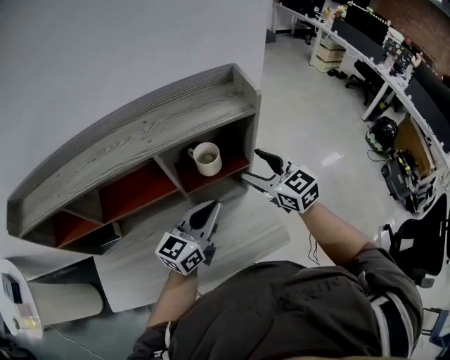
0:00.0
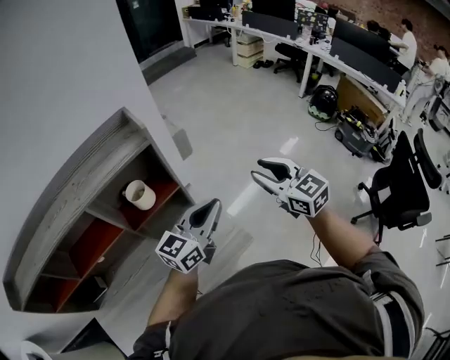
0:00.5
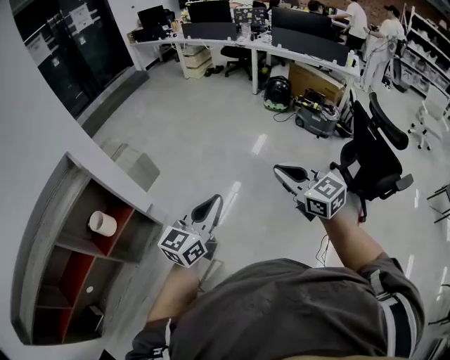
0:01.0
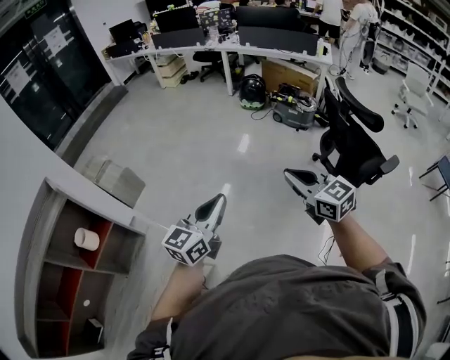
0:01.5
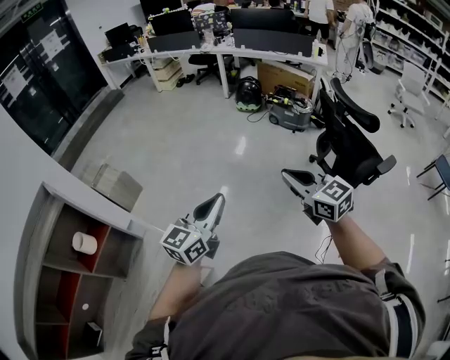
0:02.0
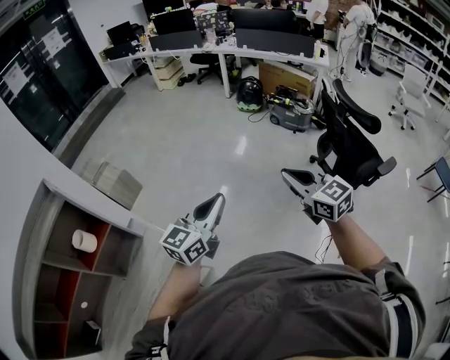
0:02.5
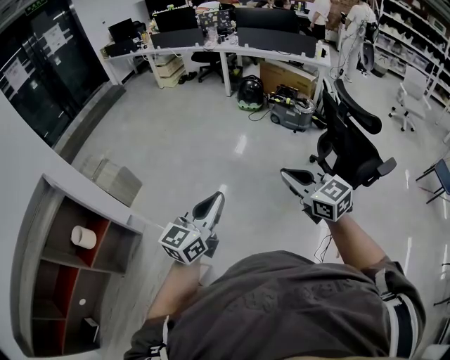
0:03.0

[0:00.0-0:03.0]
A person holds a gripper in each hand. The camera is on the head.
0:00.0 to 0:01.5: The pair of grippers is taken about 60 cm. The left gripper swivels some 40 degrees, while the right gripper swivels roughly 50 degrees, and closes up.
0:01.5 to 0:03.0: Both grippers stay about where they are.

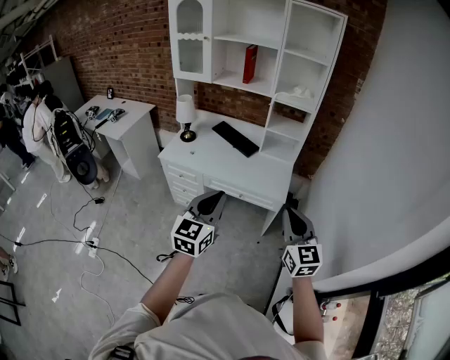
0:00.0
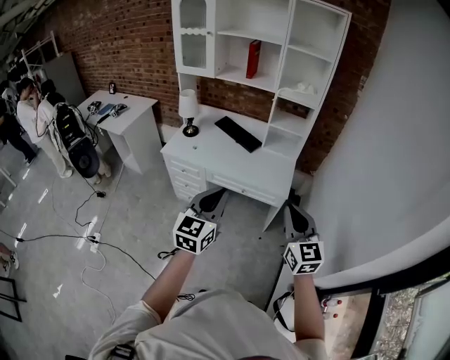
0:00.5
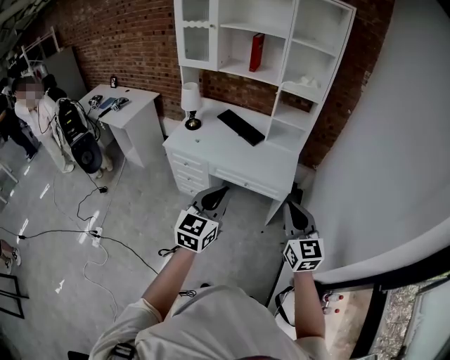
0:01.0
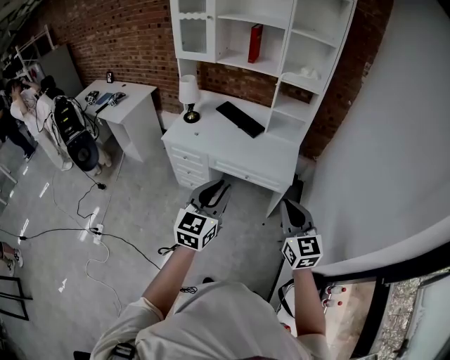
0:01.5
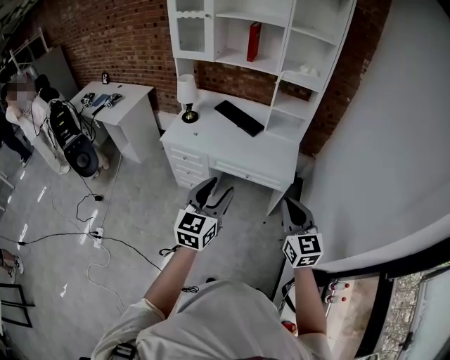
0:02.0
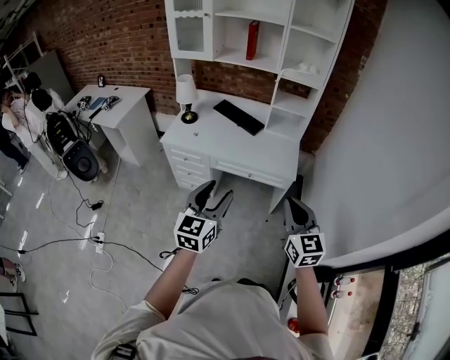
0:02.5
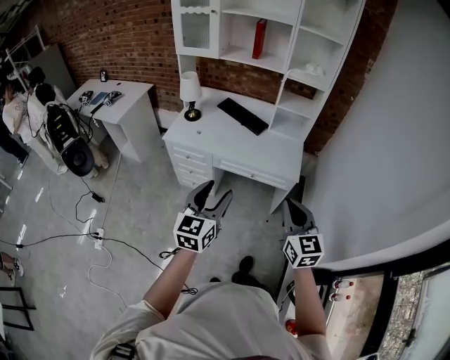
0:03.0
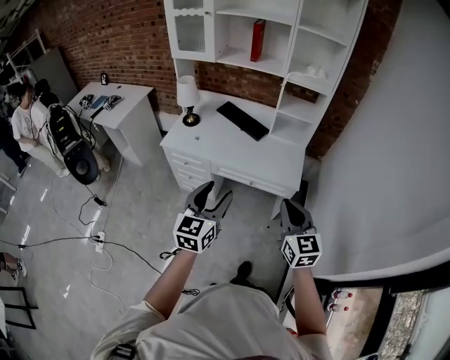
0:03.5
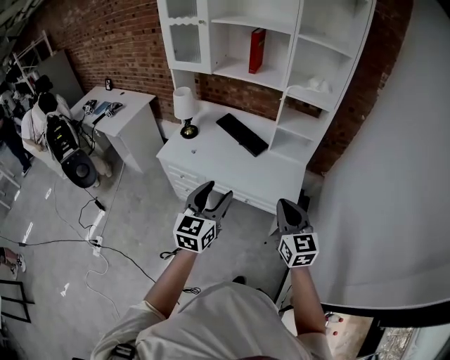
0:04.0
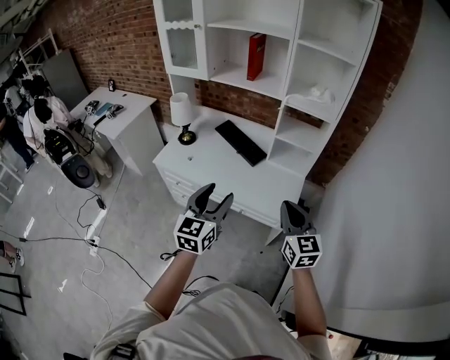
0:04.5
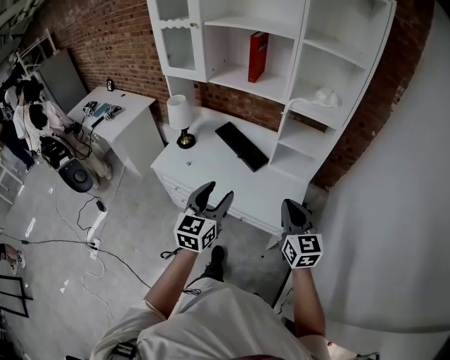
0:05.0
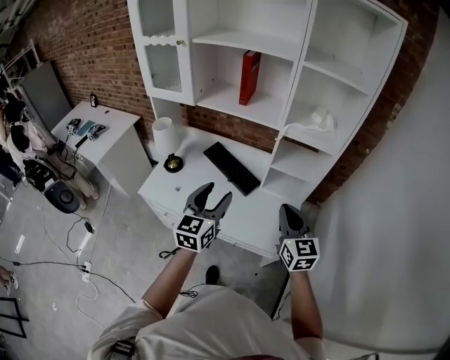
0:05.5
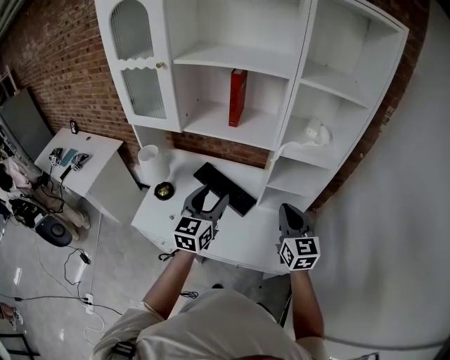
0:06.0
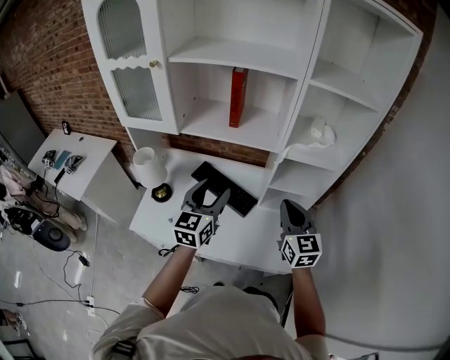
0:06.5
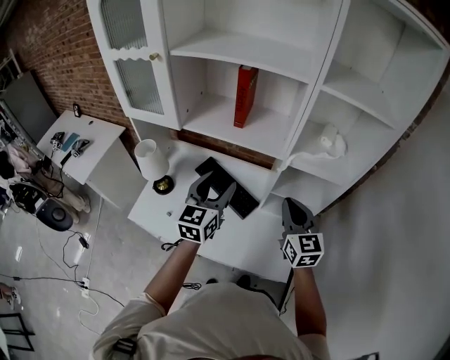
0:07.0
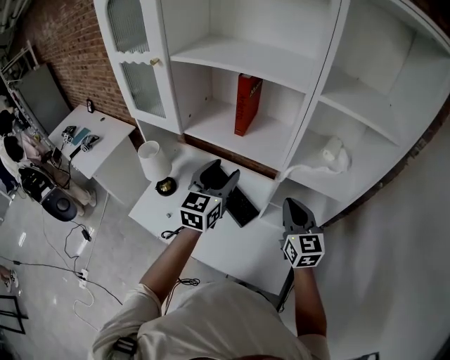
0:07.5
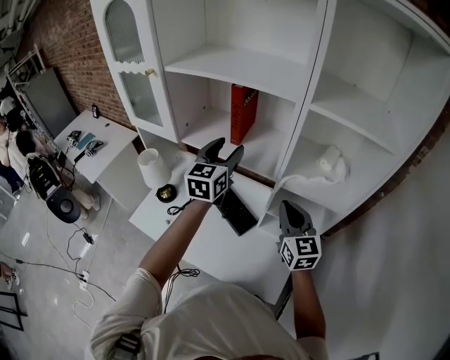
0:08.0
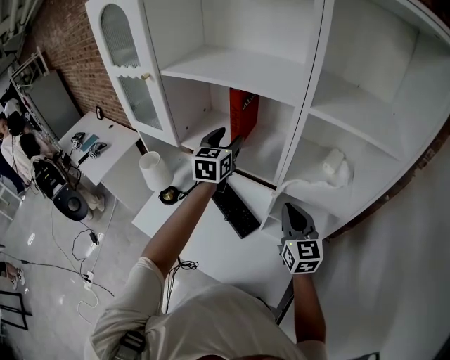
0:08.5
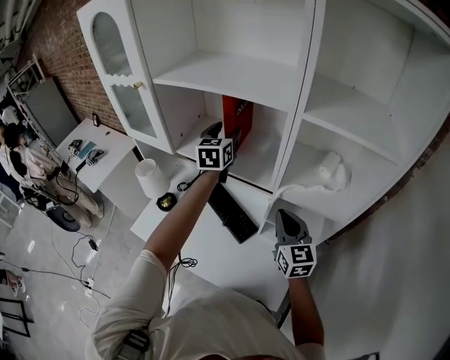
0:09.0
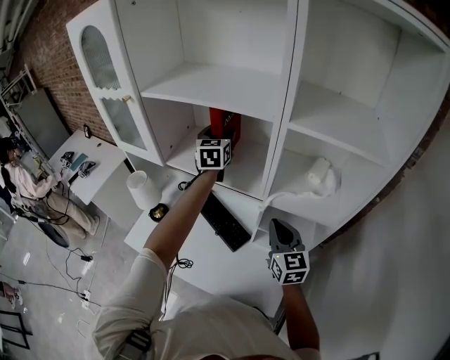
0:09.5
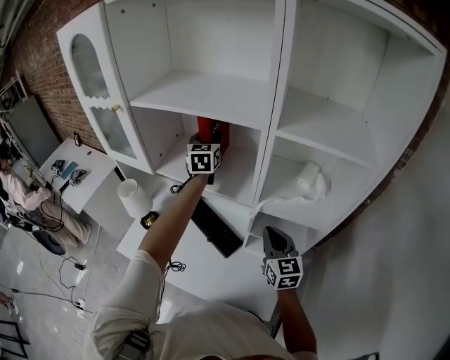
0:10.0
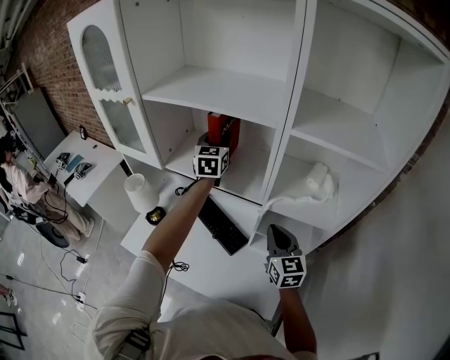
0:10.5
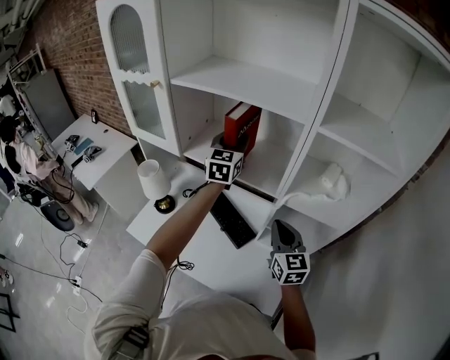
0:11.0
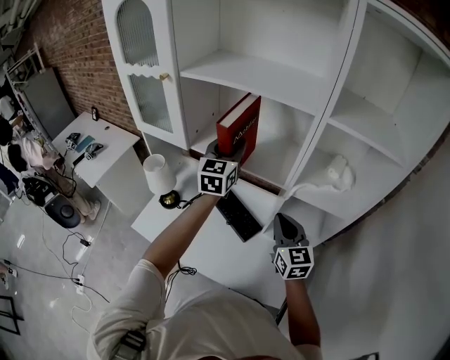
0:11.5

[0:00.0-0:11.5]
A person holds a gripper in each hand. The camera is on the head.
0:00.0 to 0:02.0: The right gripper shifts about 5 cm to the left. The left gripper ends up roughly 5 cm from where it was, and opens its fingers.
0:02.0 to 0:04.0: The two grippers go approximately 20 cm forward.
0:04.0 to 0:06.0: The two grippers go approximately 35 cm forward.
0:06.0 to 0:07.5: Both grippers move forward, about 15 cm.
0:07.5 to 0:09.5: The left gripper shifts roughly 25 cm forward. Meanwhile the right gripper shifts by some 5 cm.
0:09.5 to 0:11.5: The right gripper moves to the left, about 5 cm, while the left gripper moves backward and to the left, approximately 15 cm, and closes up.

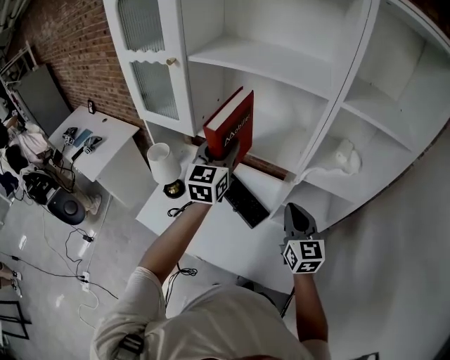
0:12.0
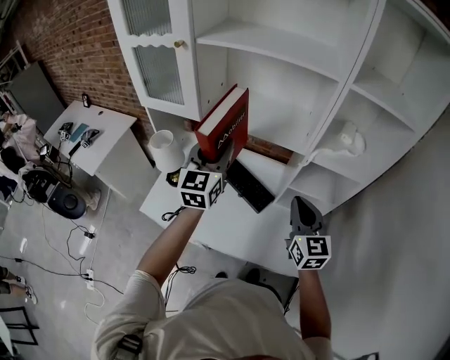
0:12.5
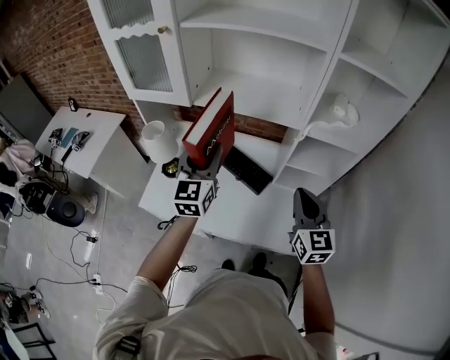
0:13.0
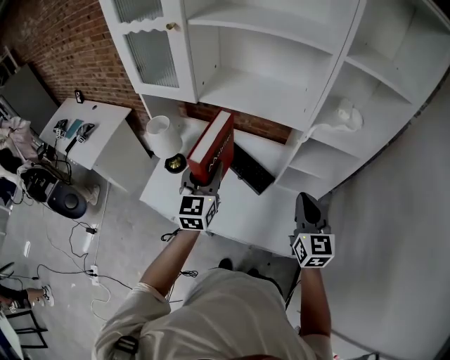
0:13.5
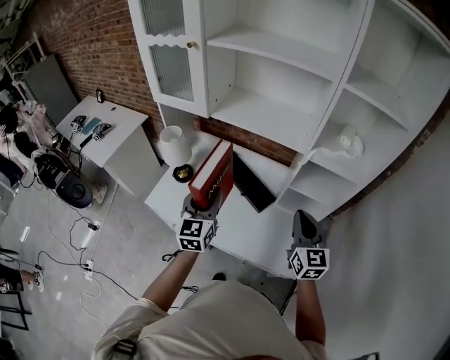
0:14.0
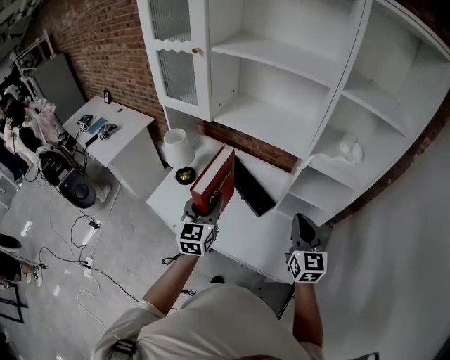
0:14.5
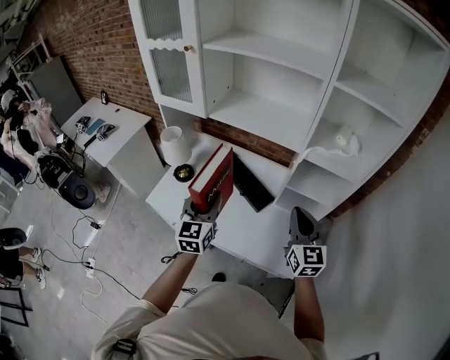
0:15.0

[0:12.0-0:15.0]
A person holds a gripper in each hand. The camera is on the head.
0:12.0 to 0:13.5: The left gripper shifts some 20 cm backward and downward. Meanwhile the right gripper is displaced backward by approximately 10 cm.
0:13.5 to 0:15.0: The left gripper moves backward, some 5 cm.

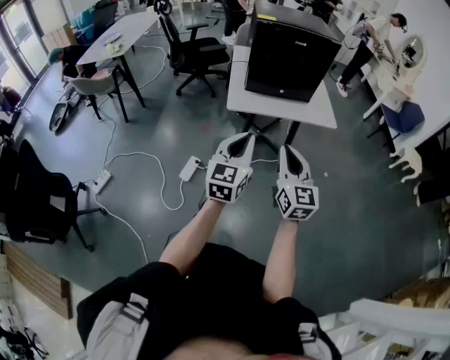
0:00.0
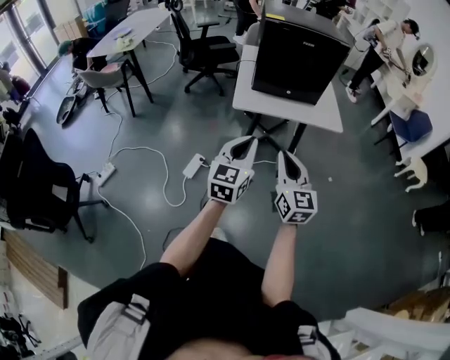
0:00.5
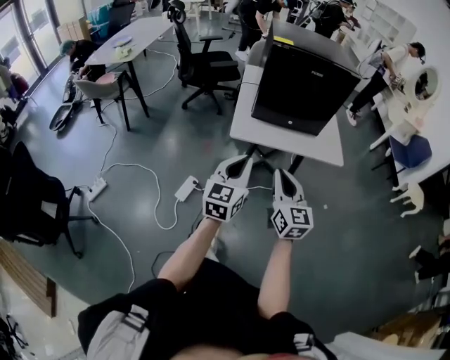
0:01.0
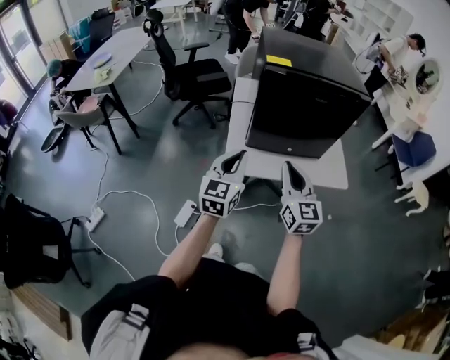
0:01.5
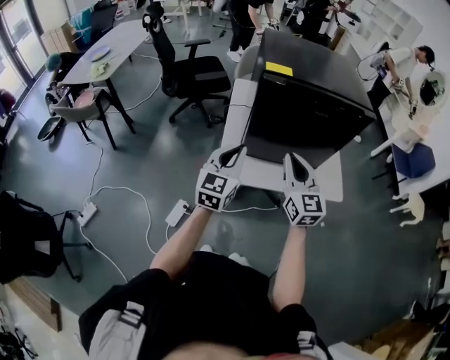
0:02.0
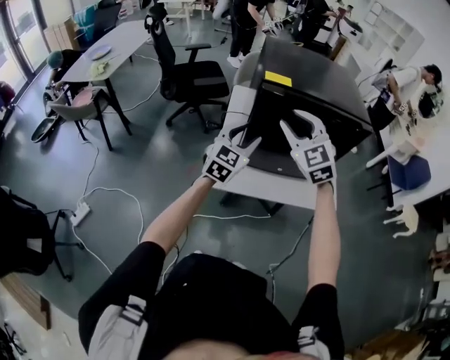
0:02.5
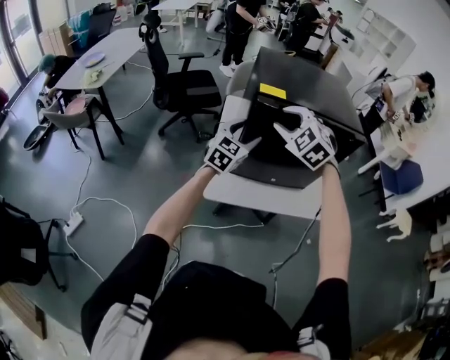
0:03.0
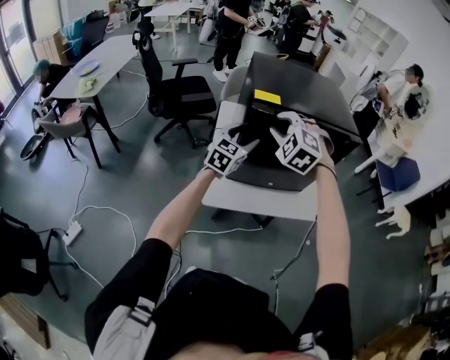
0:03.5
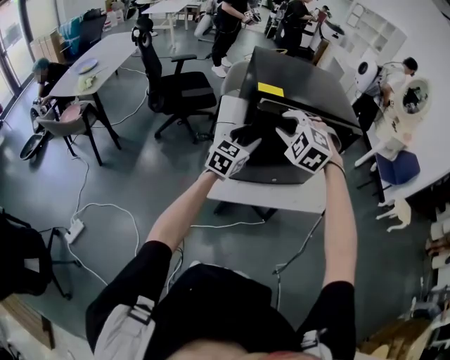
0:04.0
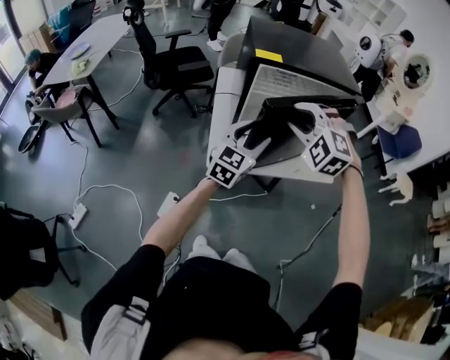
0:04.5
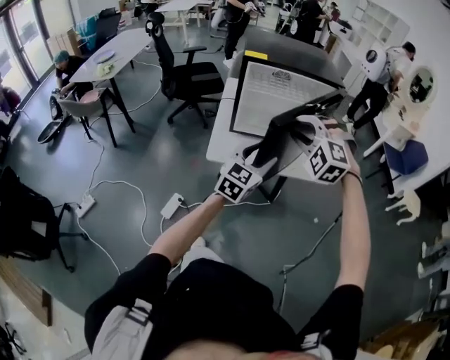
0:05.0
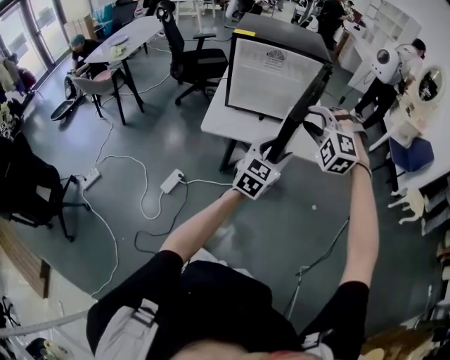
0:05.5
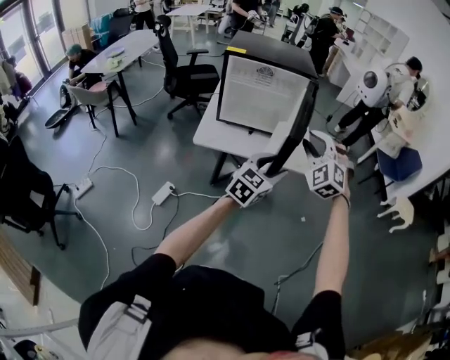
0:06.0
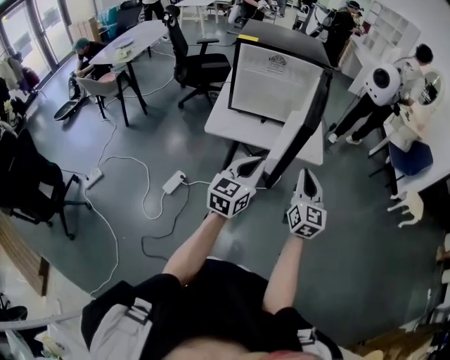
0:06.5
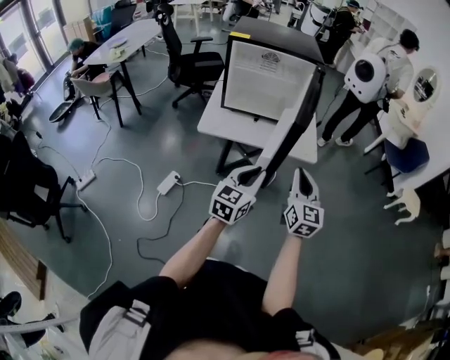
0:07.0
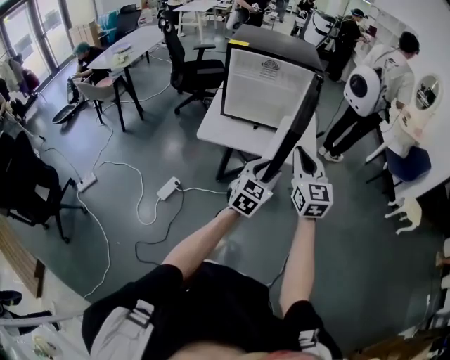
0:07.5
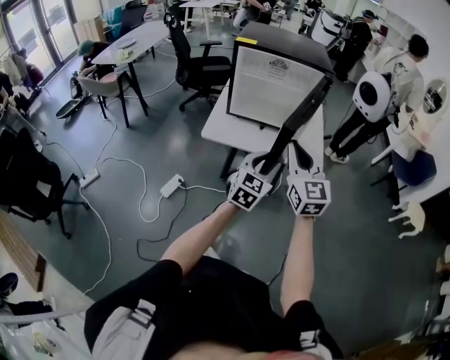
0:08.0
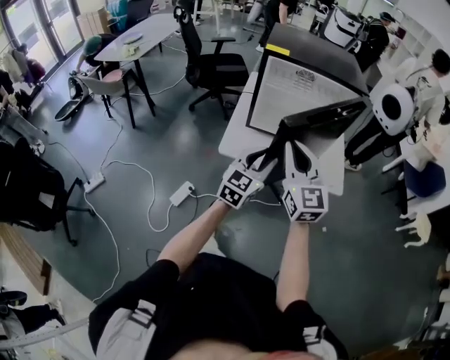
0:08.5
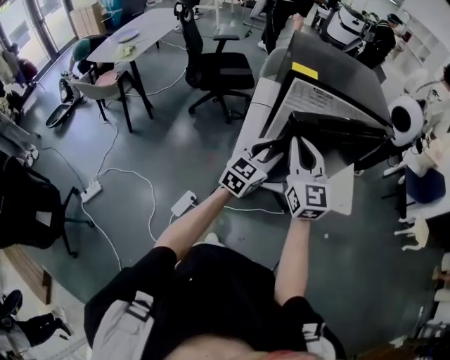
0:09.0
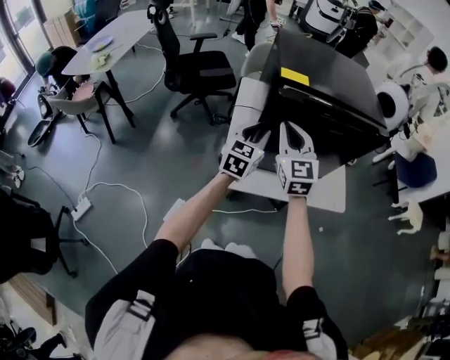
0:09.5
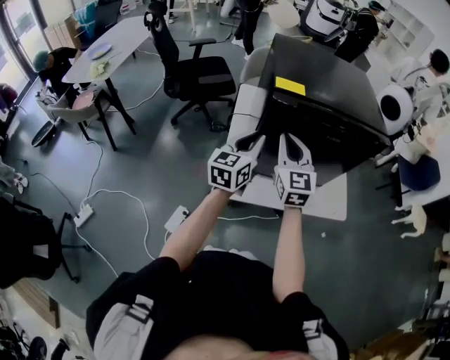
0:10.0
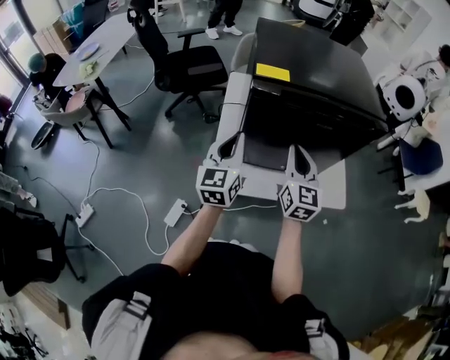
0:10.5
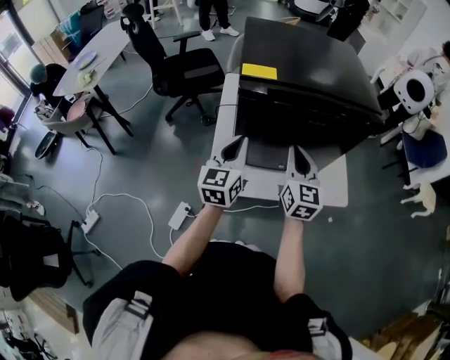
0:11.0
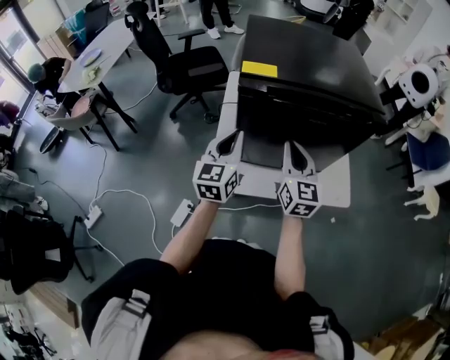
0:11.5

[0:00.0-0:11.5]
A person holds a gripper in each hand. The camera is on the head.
0:00.0 to 0:02.0: The two grippers travel together, forward, some 40 cm.
0:02.0 to 0:04.0: The left gripper heads forward, covering approximately 15 cm, and opens, while the right gripper shifts roughly 15 cm forward, upward and to the left, and twists about 60 degrees counterclockwise, seen from behind.
0:04.0 to 0:06.0: The pair of grippers is taken to the right and backward, about 40 cm. The right gripper rotates some 20 degrees.
0:06.0 to 0:07.5: The left gripper moves roughly 10 cm to the left and comes back, and closes, then opens again. Meanwhile the right gripper travels downward and back again, some 10 cm each way, twists roughly 60 degrees clockwise, seen from behind, and closes its fingers.
0:07.5 to 0:09.5: The two grippers travel together, forward and to the left, approximately 50 cm.
0:09.5 to 0:11.5: The left gripper closes its fingers. The right gripper travels to the right and downward by approximately 10 cm.
